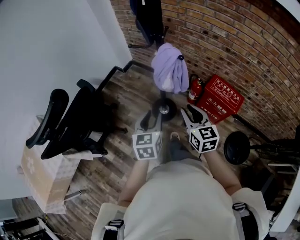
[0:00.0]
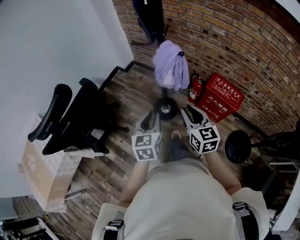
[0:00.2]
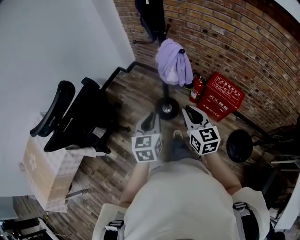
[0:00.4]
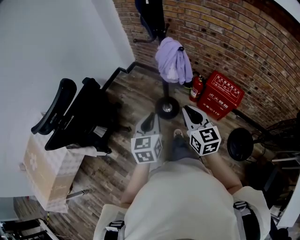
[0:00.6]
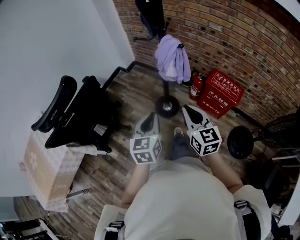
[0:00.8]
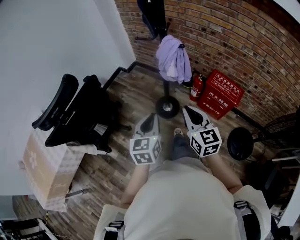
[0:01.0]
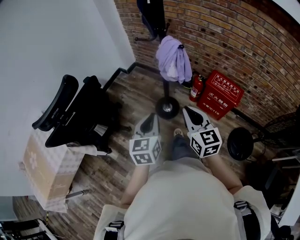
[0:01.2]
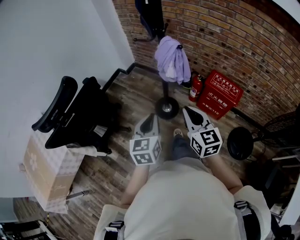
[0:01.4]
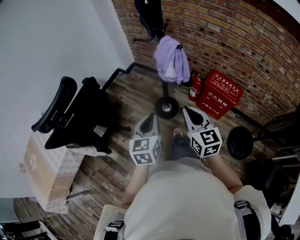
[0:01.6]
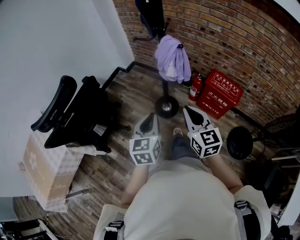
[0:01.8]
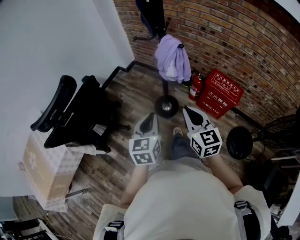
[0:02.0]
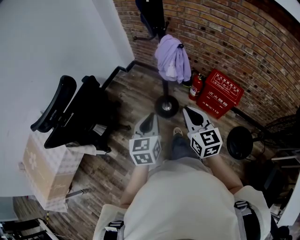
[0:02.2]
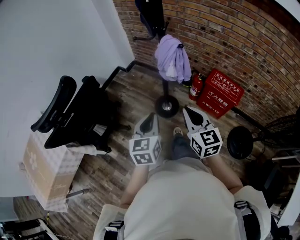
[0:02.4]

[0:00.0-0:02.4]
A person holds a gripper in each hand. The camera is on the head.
0:00.0 to 0:01.2: The two grippers go some 10 cm backward. The left gripper closes. Meanwhile the right gripper closes.
0:01.2 to 0:02.4: The two grippers keep their place.

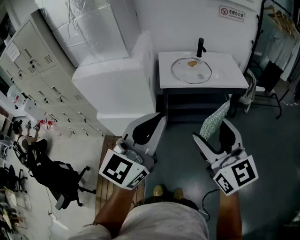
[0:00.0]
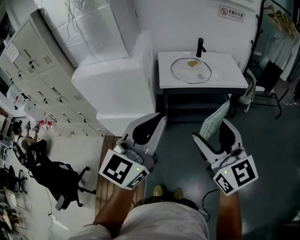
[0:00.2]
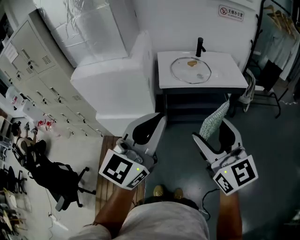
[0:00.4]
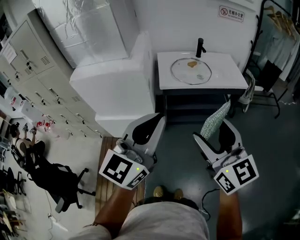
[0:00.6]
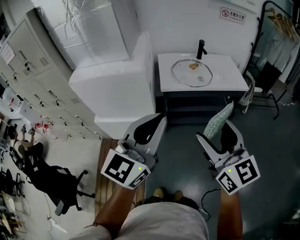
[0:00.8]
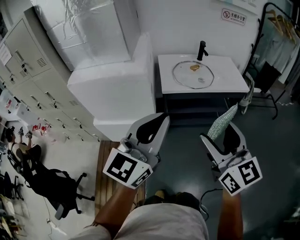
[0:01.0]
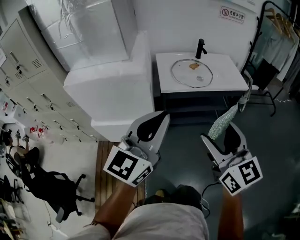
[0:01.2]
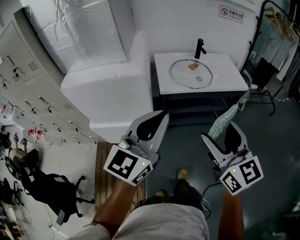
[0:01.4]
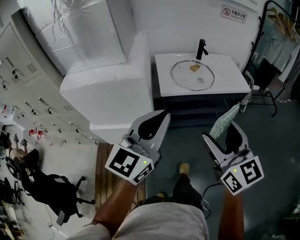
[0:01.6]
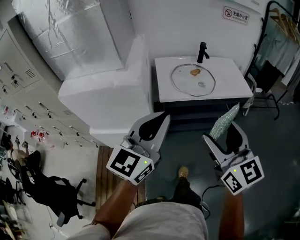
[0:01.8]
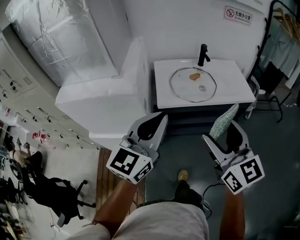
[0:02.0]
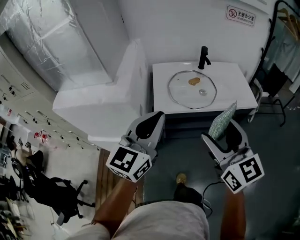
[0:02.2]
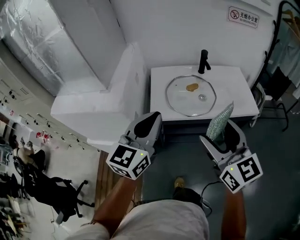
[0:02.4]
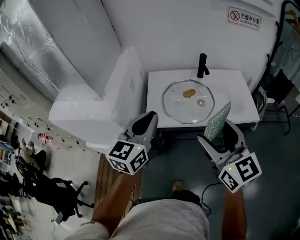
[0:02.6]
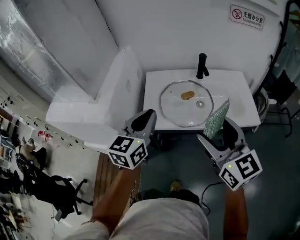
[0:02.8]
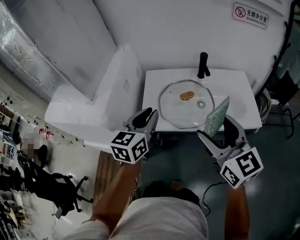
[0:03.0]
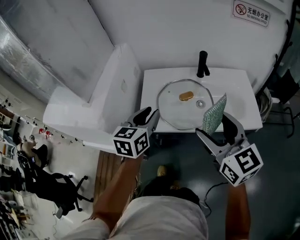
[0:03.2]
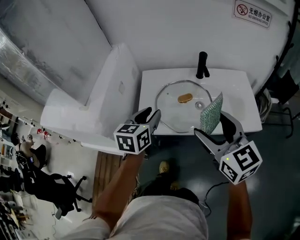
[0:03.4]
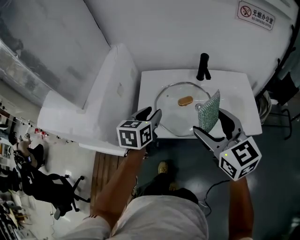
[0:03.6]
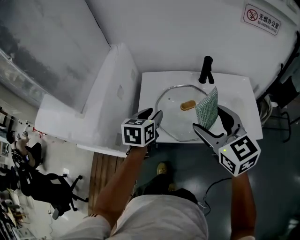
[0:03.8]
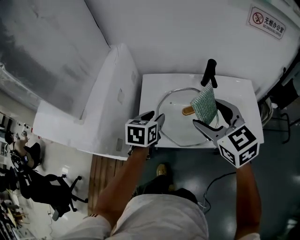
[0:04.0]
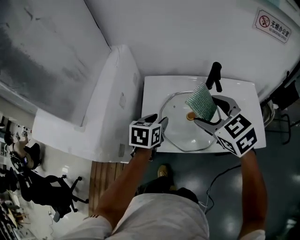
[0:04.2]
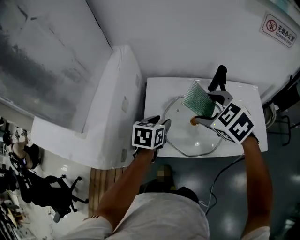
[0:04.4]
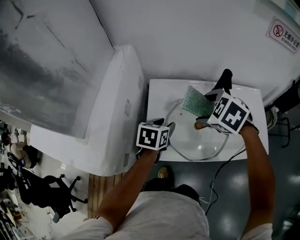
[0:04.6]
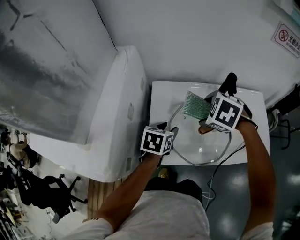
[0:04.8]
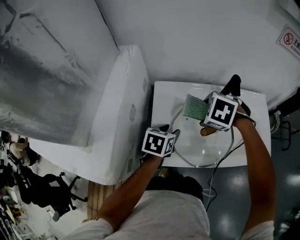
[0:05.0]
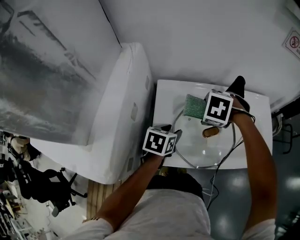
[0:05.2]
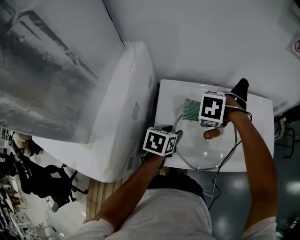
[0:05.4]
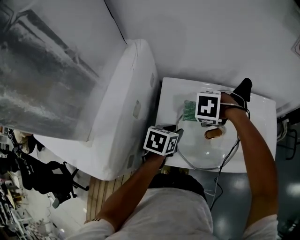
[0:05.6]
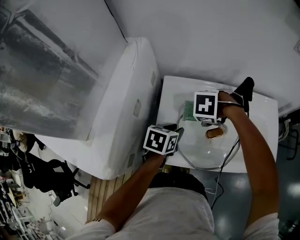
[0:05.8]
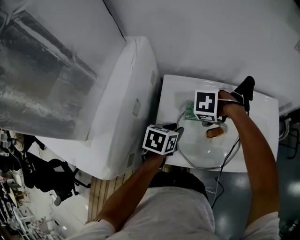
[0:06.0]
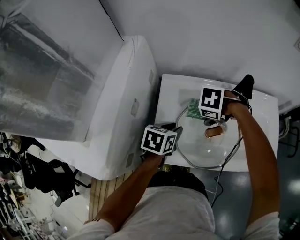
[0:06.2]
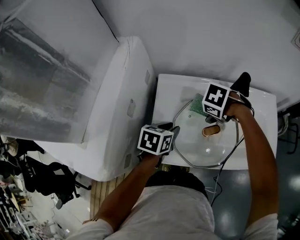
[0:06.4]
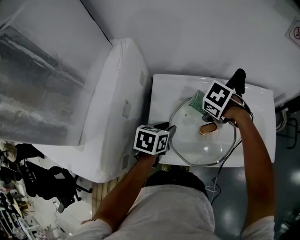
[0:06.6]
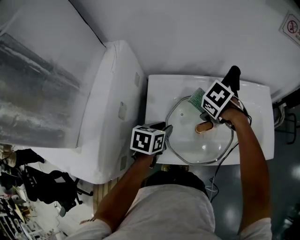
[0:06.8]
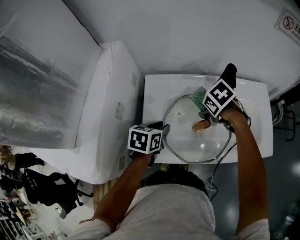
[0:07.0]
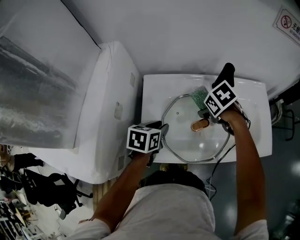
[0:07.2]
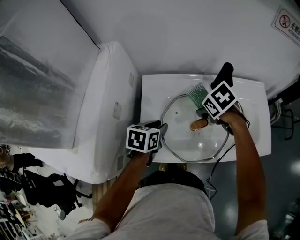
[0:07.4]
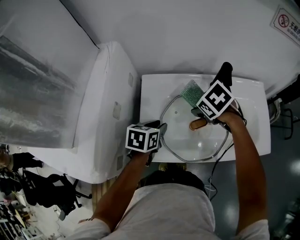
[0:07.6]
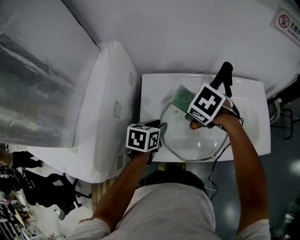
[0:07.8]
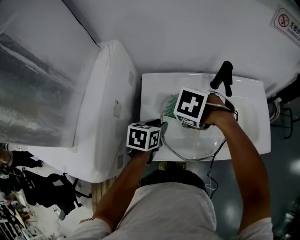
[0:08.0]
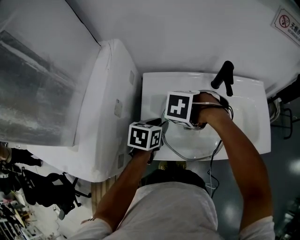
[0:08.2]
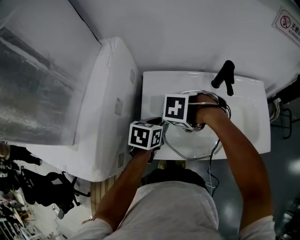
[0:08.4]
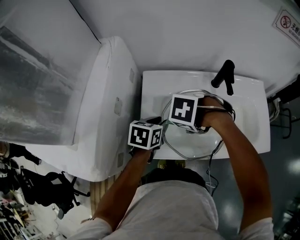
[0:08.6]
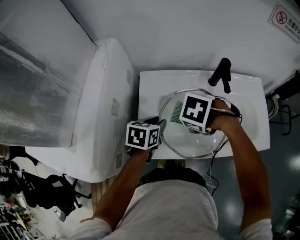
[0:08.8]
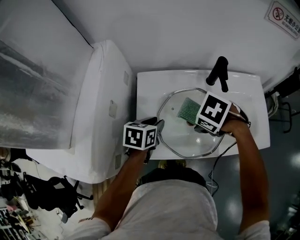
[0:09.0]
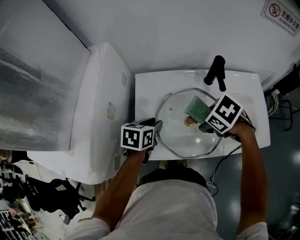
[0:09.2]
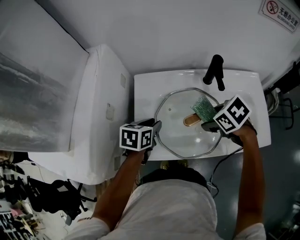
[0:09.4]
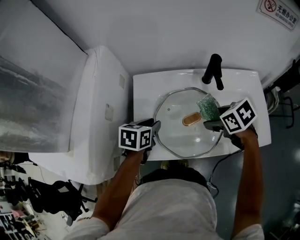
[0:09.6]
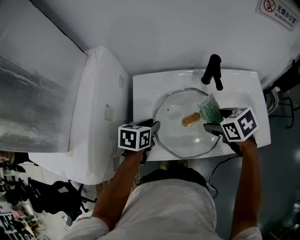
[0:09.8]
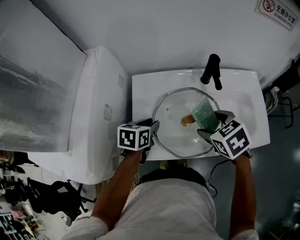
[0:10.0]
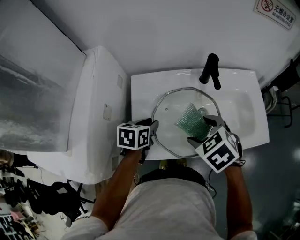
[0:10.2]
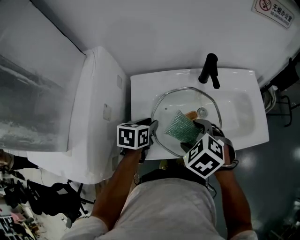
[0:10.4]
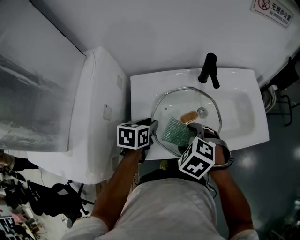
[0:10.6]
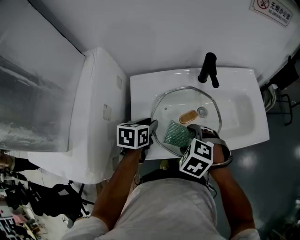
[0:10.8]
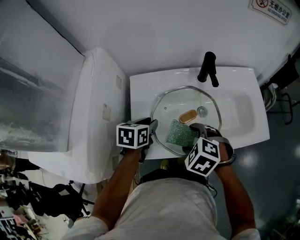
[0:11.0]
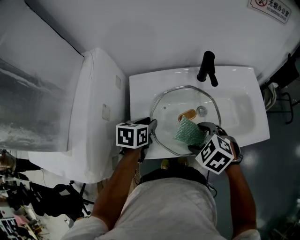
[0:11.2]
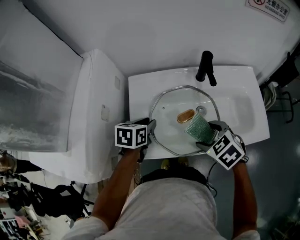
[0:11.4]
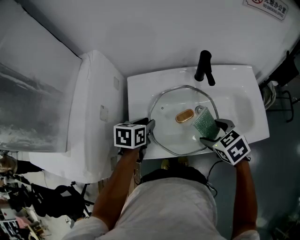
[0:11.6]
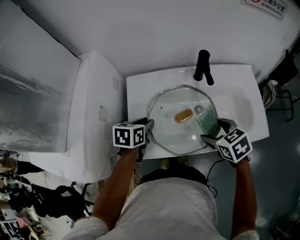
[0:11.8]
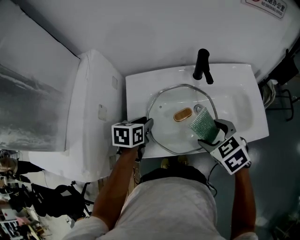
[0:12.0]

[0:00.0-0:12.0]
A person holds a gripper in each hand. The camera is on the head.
0:00.0 to 0:01.6: The right gripper is displaced forward by about 10 cm. Meanwhile the left gripper moves forward and to the left, some 15 cm.
0:01.6 to 0:03.0: The right gripper moves forward and to the right, roughly 30 cm, while the left gripper shifts roughly 30 cm forward, and changes its angle by some 30 degrees.
0:03.0 to 0:04.4: The left gripper travels forward and downward by about 20 cm, rotates approximately 30 degrees, and opens up. Meanwhile the right gripper is displaced forward by some 25 cm, and tilts its fingers approximately 40 degrees downward.
0:04.4 to 0:06.0: The right gripper travels downward by roughly 15 cm, and tips its fingers downward by roughly 40 degrees.
0:06.0 to 0:07.6: The right gripper changes place by approximately 5 cm, and turns by about 50 degrees.
0:07.6 to 0:09.0: The right gripper changes place by some 10 cm.
0:09.0 to 0:10.4: The right gripper shifts by roughly 5 cm, and turns by about 30 degrees.
0:10.4 to 0:12.0: The right gripper moves to the right, about 10 cm.

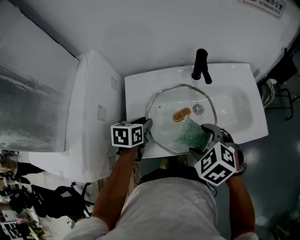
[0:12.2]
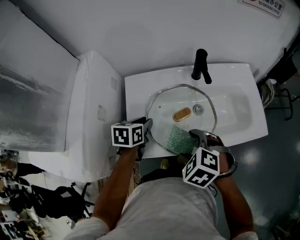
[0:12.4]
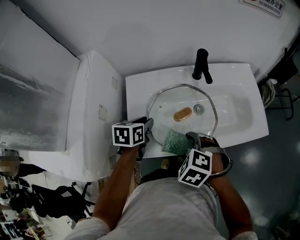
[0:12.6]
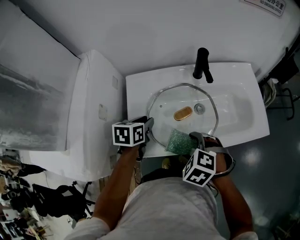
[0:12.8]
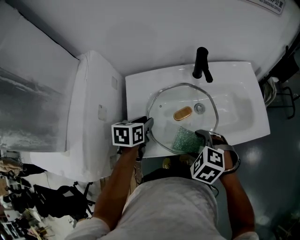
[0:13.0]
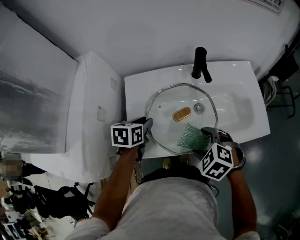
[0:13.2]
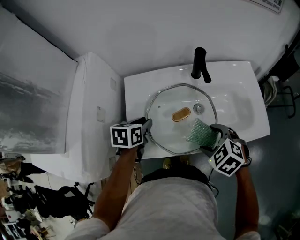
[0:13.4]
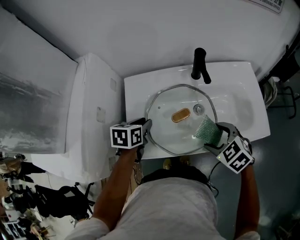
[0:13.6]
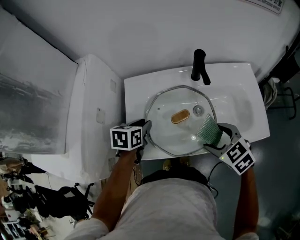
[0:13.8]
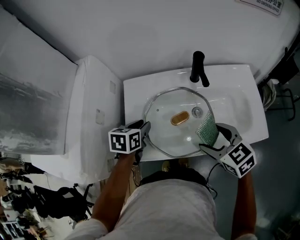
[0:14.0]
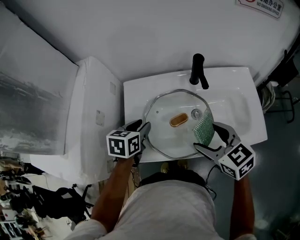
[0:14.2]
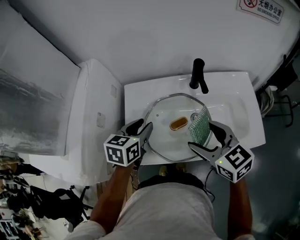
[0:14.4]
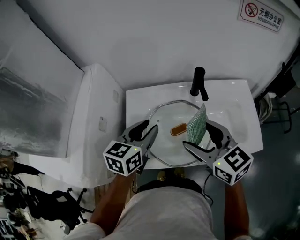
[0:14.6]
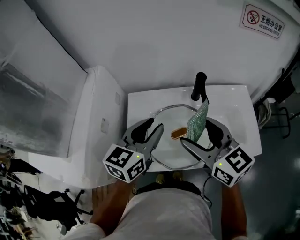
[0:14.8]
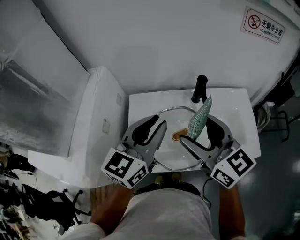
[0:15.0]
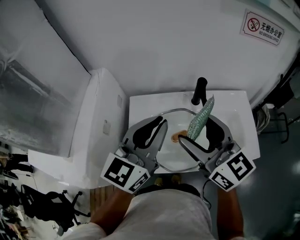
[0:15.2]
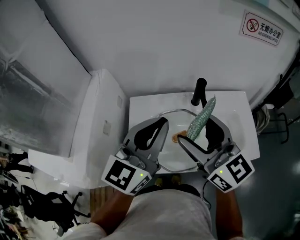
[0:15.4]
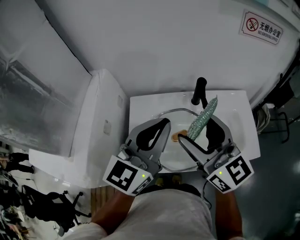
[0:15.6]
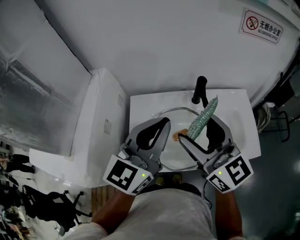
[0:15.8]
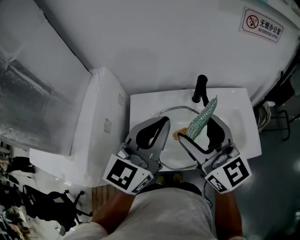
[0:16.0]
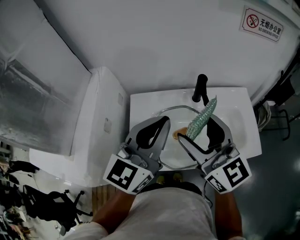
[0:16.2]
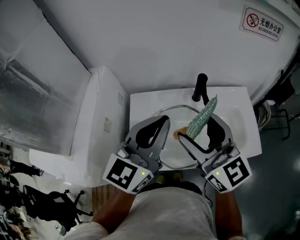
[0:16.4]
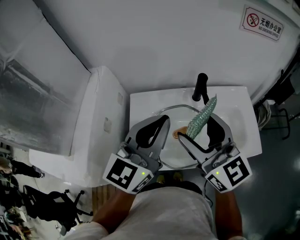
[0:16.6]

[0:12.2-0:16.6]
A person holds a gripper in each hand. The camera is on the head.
0:12.2 to 0:13.6: The right gripper is displaced to the right by roughly 5 cm.
0:13.6 to 0:15.2: The two grippers go about 25 cm upward. The left gripper tilts its fingers some 50 degrees upward, while the right gripper tilts its fingers about 50 degrees upward.
0:15.2 to 0:16.6: The grippers move only a little.

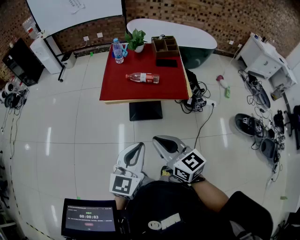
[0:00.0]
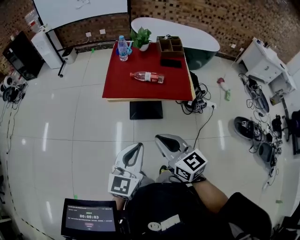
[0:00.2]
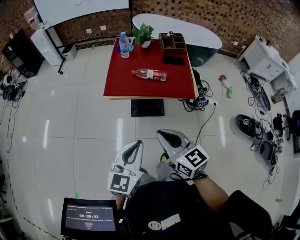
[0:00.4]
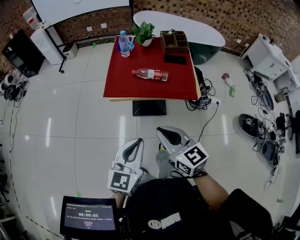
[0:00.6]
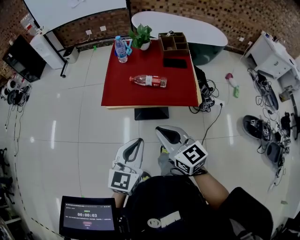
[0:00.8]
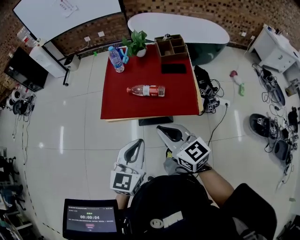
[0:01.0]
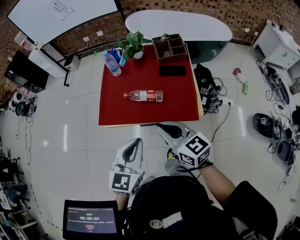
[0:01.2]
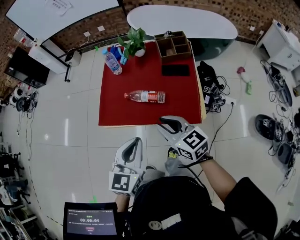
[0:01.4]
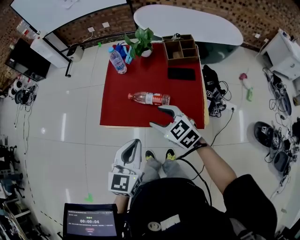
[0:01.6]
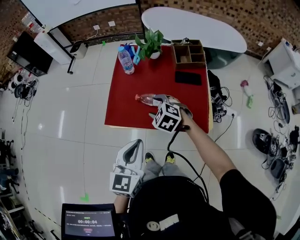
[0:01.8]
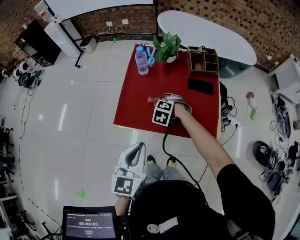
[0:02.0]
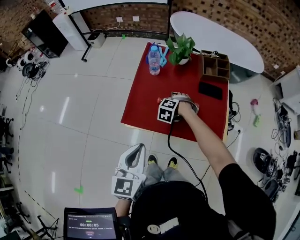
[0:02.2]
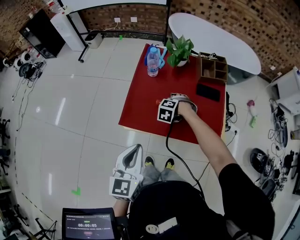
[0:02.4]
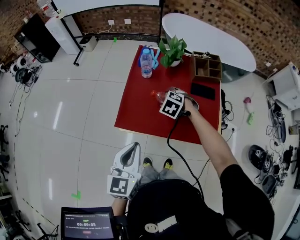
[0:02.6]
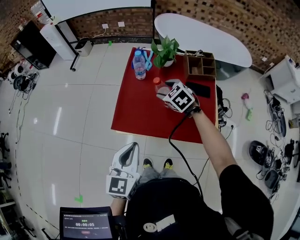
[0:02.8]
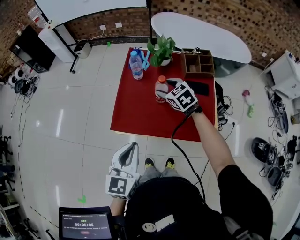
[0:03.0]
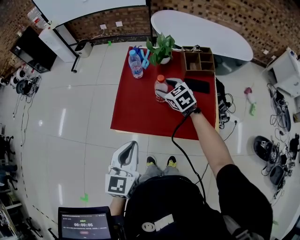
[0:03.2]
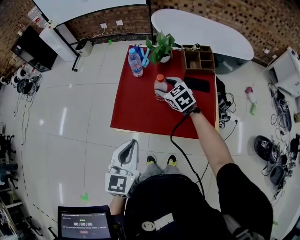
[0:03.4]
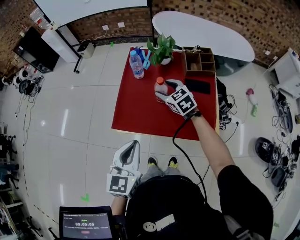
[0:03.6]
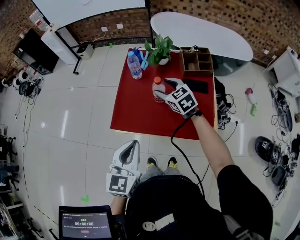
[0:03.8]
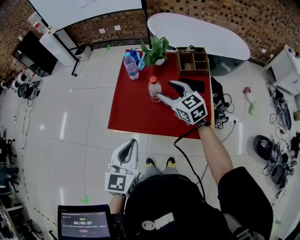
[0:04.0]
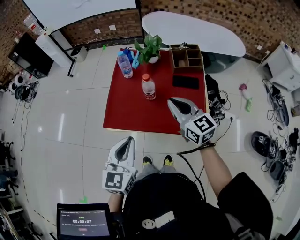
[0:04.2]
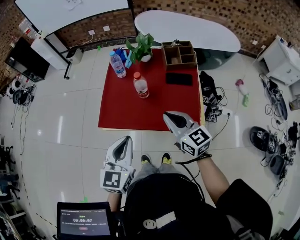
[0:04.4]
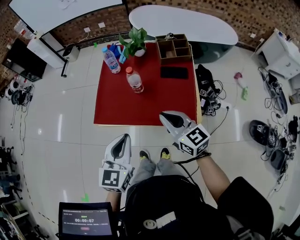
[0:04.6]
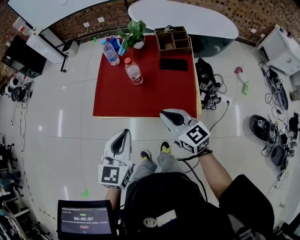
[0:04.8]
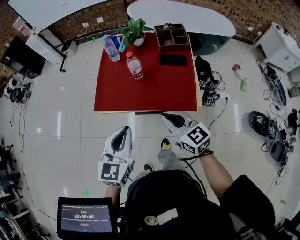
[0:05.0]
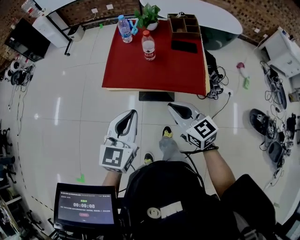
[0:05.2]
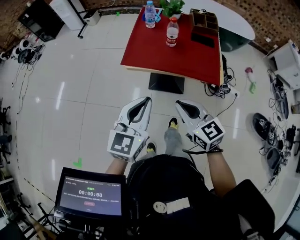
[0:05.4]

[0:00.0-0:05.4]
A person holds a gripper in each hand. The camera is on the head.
0:00.0 to 0:01.4: The two grippers go some 25 cm forward.
0:01.4 to 0:02.8: The right gripper travels downward and back again, roughly 20 cm each way, tilts its fingers some 30 degrees downward, and opens up; the left gripper moves approximately 15 cm.
0:02.8 to 0:04.0: The right gripper moves upward, to the right and backward, approximately 10 cm, and rotates some 30 degrees.
0:04.0 to 0:05.4: The left gripper moves backward, some 20 cm. The right gripper is displaced backward by some 40 cm, and closes.
